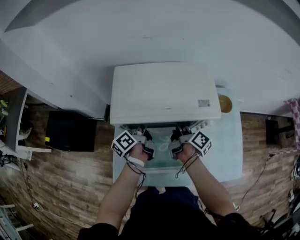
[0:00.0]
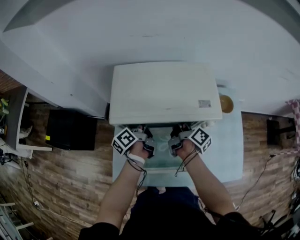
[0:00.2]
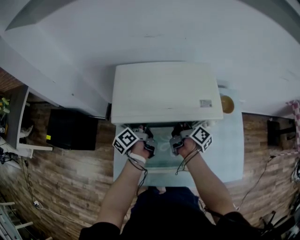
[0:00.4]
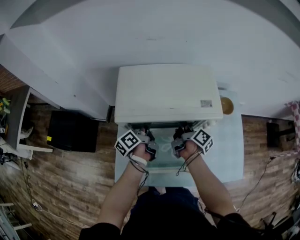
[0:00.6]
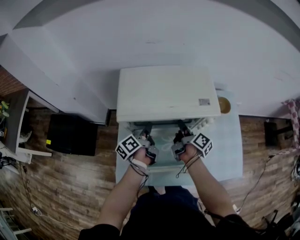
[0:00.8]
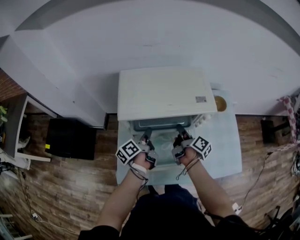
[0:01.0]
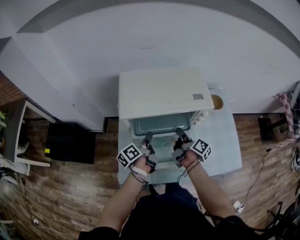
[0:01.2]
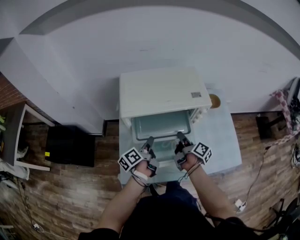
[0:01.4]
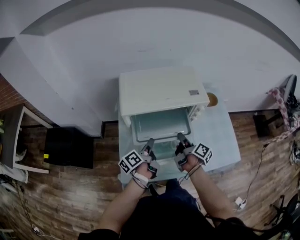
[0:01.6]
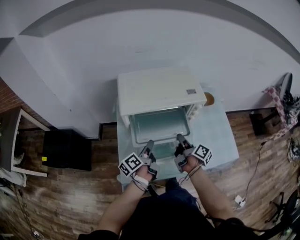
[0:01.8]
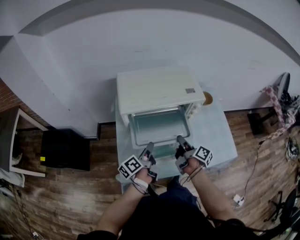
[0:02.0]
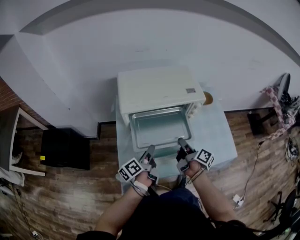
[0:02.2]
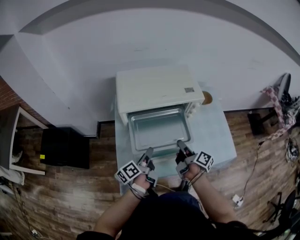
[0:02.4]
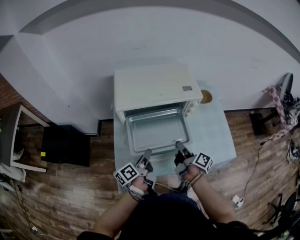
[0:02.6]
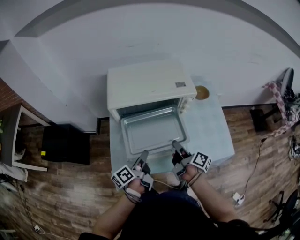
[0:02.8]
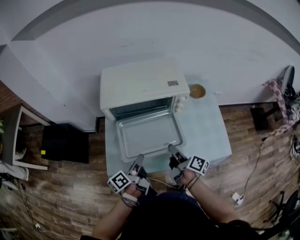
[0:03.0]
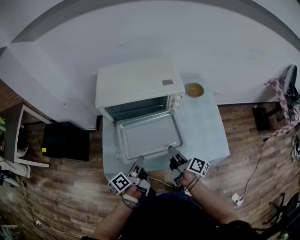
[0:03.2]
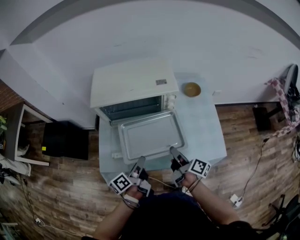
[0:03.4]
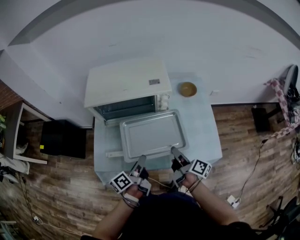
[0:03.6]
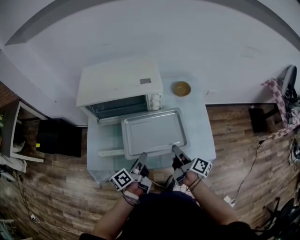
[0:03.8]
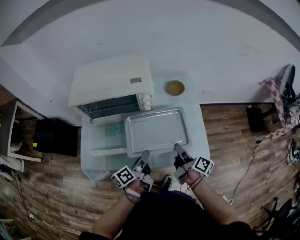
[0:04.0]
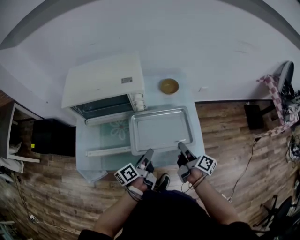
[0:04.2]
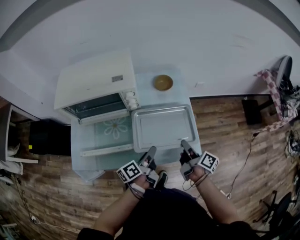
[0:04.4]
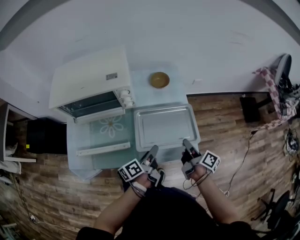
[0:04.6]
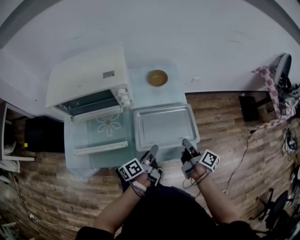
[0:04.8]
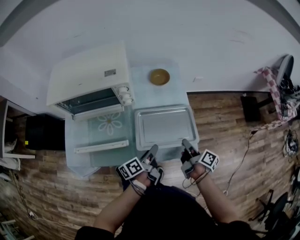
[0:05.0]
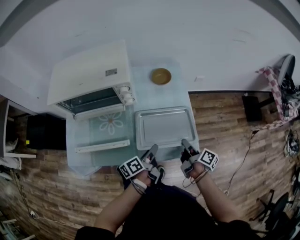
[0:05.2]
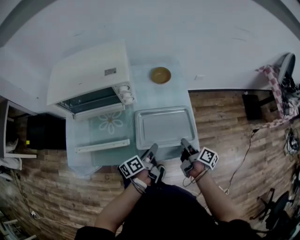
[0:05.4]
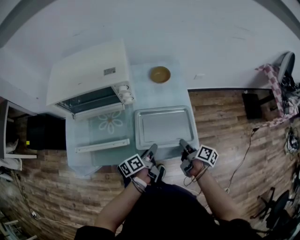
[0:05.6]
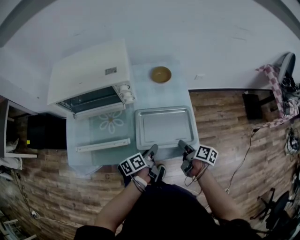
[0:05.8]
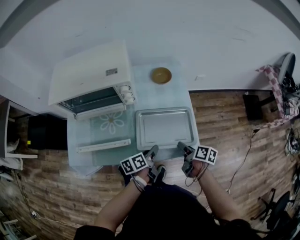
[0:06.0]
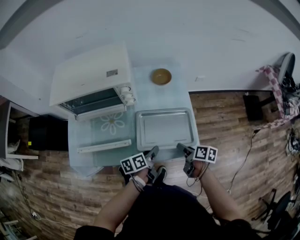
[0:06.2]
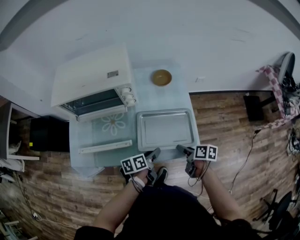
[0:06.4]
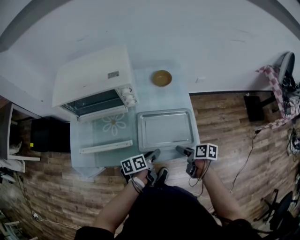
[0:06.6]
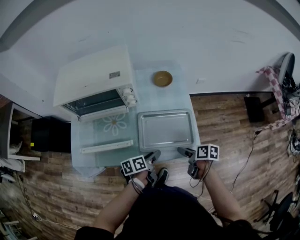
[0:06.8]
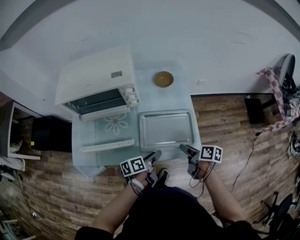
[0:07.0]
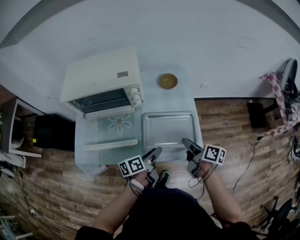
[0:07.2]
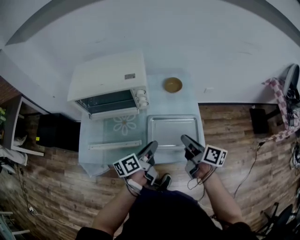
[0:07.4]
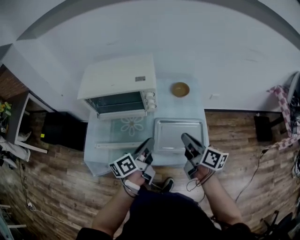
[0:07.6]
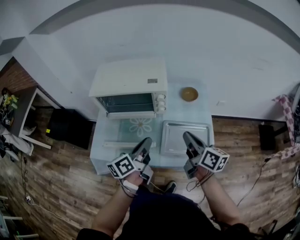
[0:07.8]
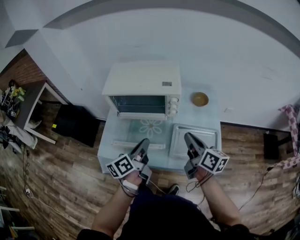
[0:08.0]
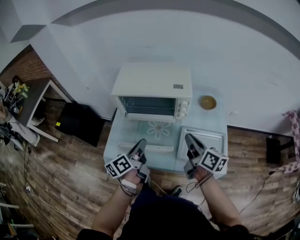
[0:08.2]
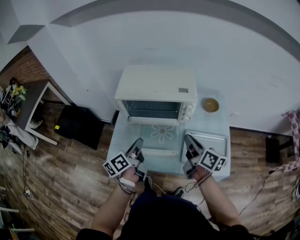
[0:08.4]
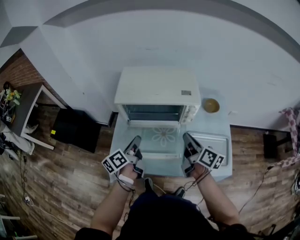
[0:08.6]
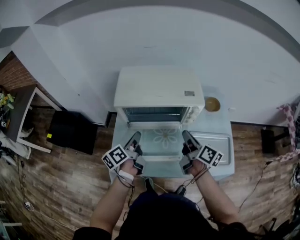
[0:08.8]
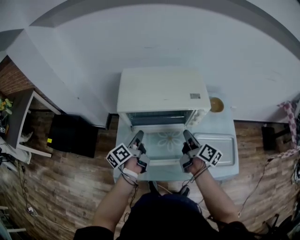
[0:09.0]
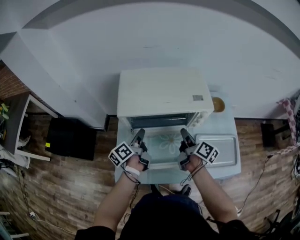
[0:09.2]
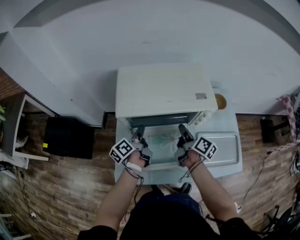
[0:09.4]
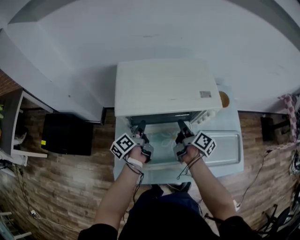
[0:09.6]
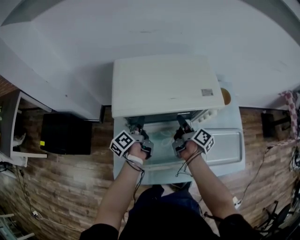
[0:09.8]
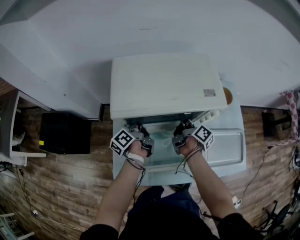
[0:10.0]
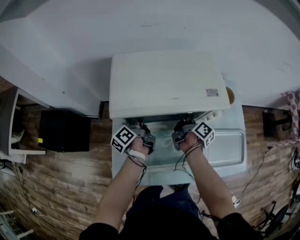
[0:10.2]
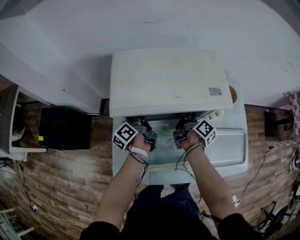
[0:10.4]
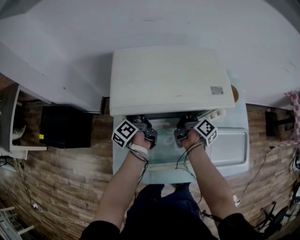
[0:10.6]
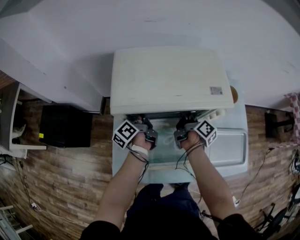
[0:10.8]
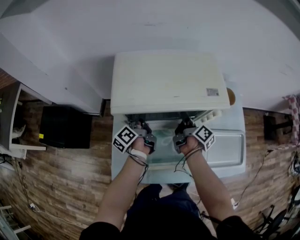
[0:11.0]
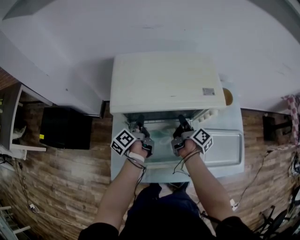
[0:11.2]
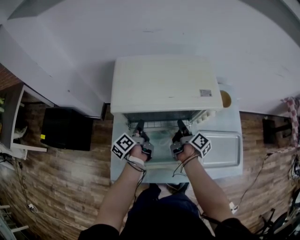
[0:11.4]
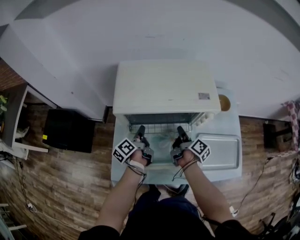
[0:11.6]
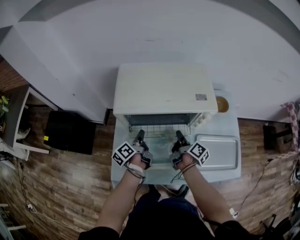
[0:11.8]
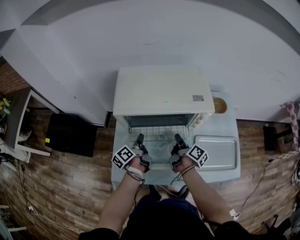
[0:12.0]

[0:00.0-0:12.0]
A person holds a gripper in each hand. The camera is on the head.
0:00.0 to 0:01.6: Both grippers move backward, roughly 15 cm. The left gripper closes.
0:01.6 to 0:03.0: Both grippers travel together backward and to the right, about 15 cm.
0:03.0 to 0:04.4: The grippers both shift to the right by approximately 35 cm.
0:04.4 to 0:06.0: The grippers both shift downward by approximately 5 cm. The right gripper changes its angle by some 20 degrees. Meanwhile the left gripper changes its angle by roughly 20 degrees.
0:06.0 to 0:07.6: The grippers both shift upward and to the left by approximately 25 cm. The left gripper swivels about 30 degrees. The right gripper angles its fingers upward, by about 30 degrees, and closes its fingers.
0:07.6 to 0:09.0: The two grippers go some 30 cm to the left and forward. The right gripper rotates some 20 degrees.
0:09.0 to 0:10.4: The two grippers go about 20 cm forward and downward.
0:10.4 to 0:12.0: Both grippers travel together backward, approximately 10 cm. The left gripper closes.

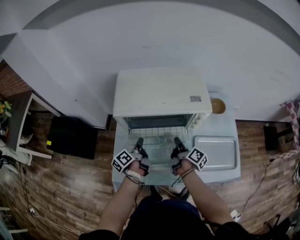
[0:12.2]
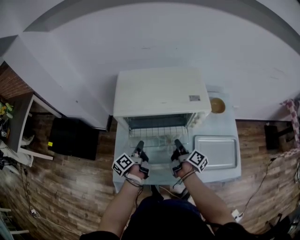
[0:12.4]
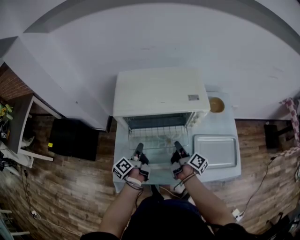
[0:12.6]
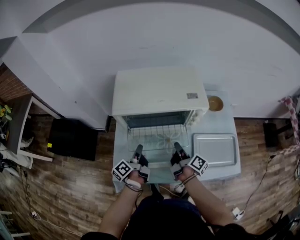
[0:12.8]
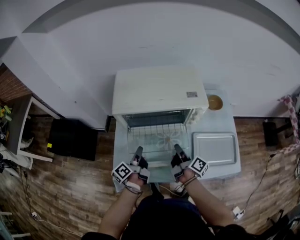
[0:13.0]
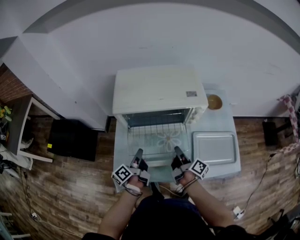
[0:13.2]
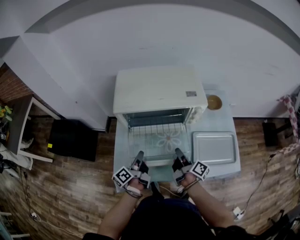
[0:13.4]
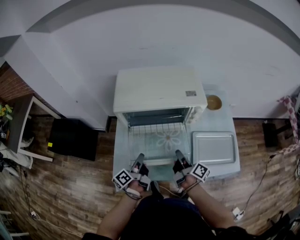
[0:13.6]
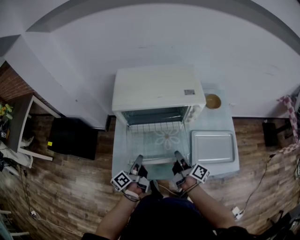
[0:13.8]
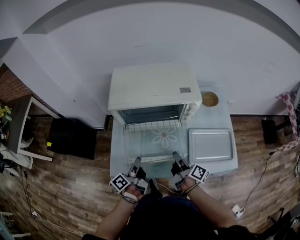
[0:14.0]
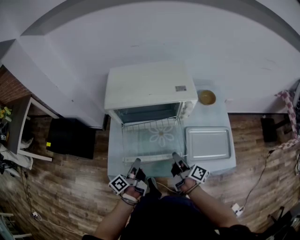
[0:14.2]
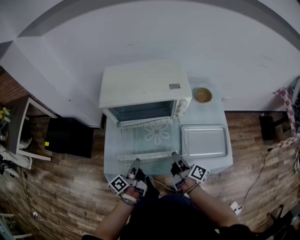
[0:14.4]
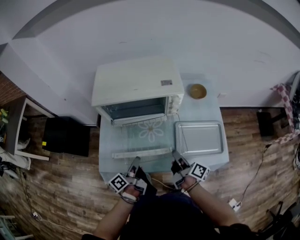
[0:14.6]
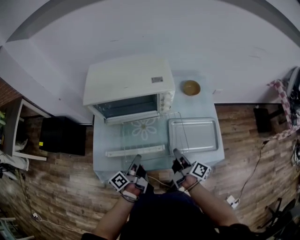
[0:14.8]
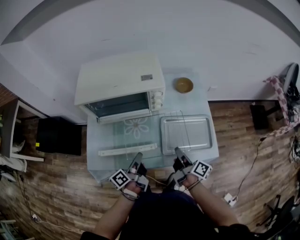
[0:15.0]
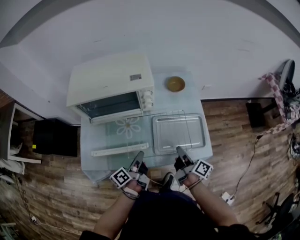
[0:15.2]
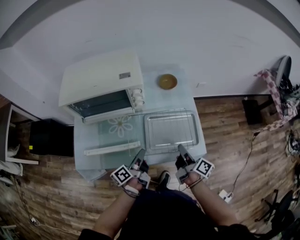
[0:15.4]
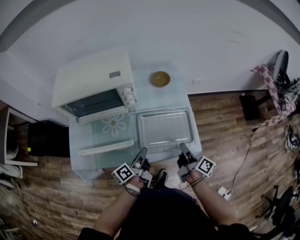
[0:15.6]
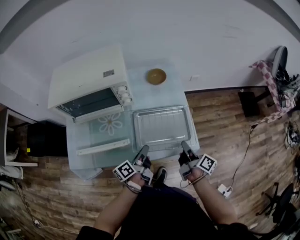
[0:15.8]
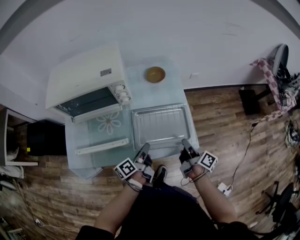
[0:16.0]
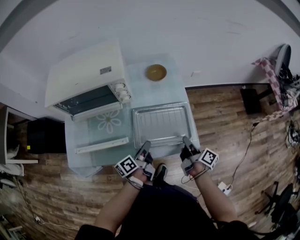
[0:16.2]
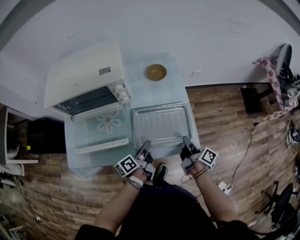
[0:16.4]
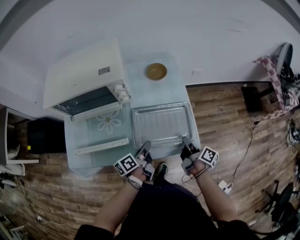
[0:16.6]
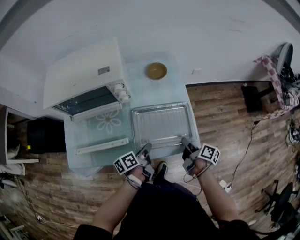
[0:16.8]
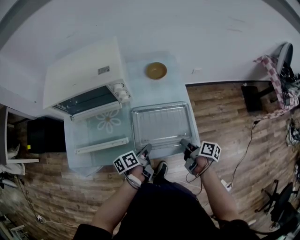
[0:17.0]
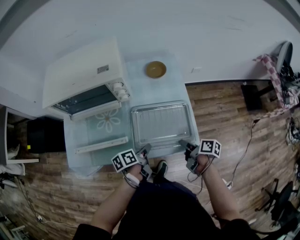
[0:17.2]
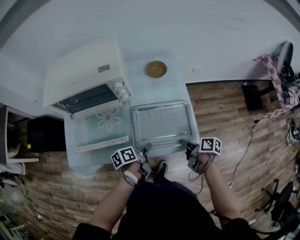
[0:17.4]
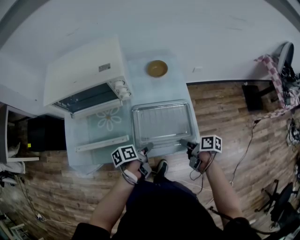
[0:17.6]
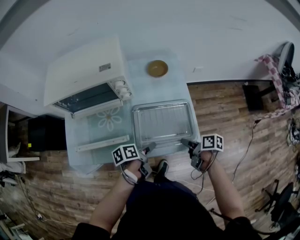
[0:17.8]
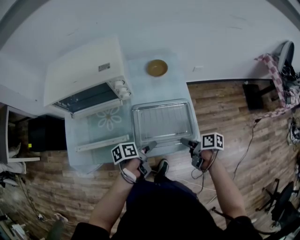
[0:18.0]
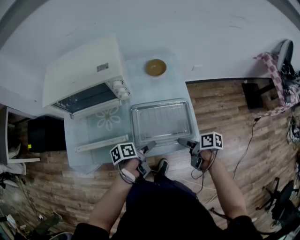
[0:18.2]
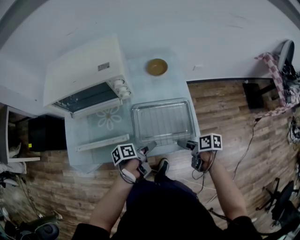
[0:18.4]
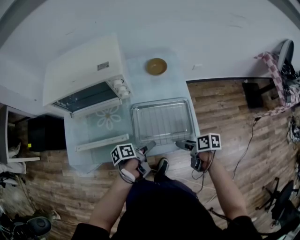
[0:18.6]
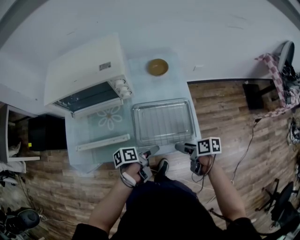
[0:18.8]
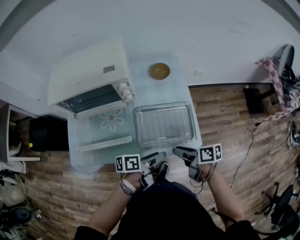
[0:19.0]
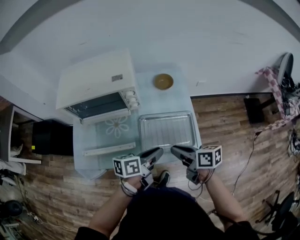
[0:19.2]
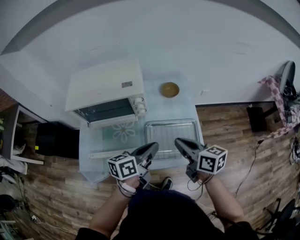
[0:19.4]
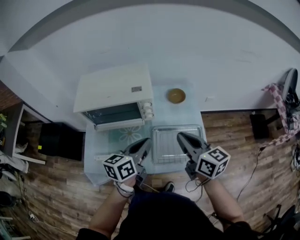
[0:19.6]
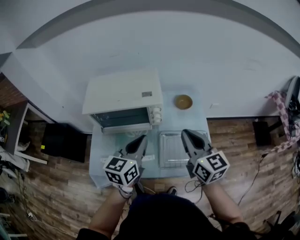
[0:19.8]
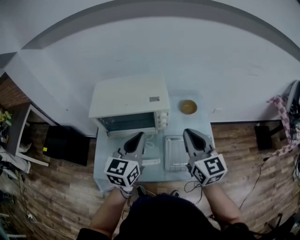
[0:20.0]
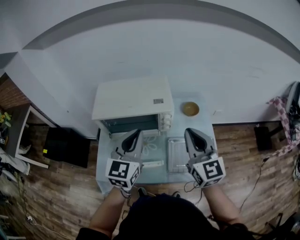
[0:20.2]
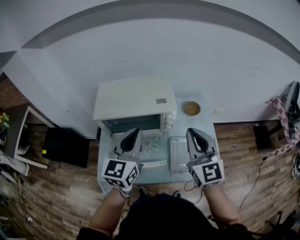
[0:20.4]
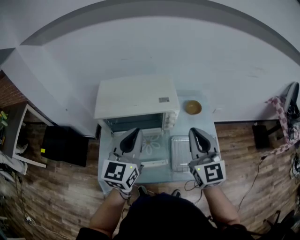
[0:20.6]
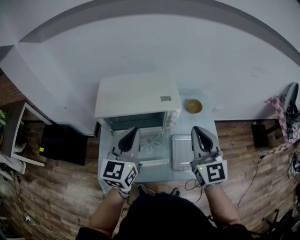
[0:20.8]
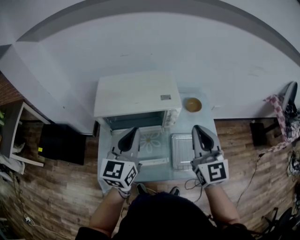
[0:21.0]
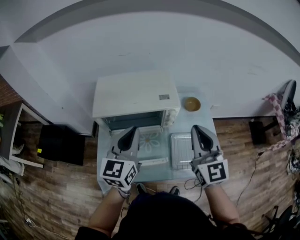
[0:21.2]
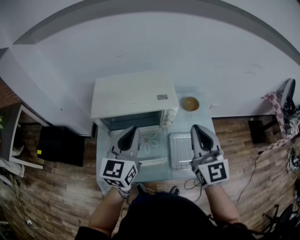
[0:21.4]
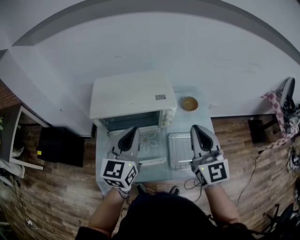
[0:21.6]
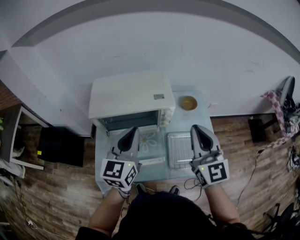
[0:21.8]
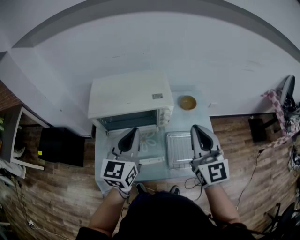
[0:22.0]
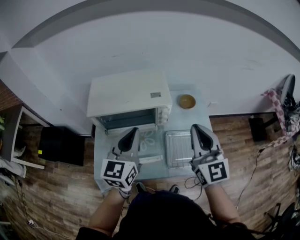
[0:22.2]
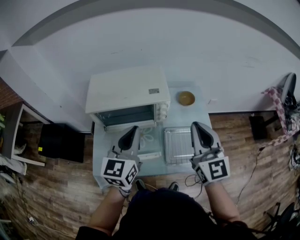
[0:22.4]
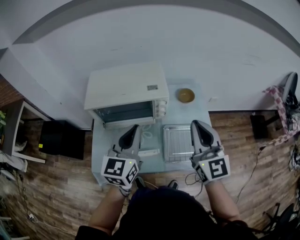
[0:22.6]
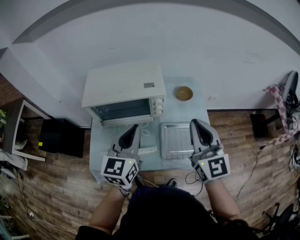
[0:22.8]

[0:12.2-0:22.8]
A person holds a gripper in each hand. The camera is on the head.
0:12.2 to 0:13.8: The grippers both shift backward by some 10 cm.
0:13.8 to 0:15.2: Both grippers travel together to the right, approximately 25 cm.
0:15.2 to 0:16.8: The left gripper heads to the right, covering approximately 15 cm, while the right gripper heads to the right and downward, covering approximately 15 cm.
0:16.8 to 0:18.2: The left gripper opens up, while the right gripper changes its angle by about 30 degrees, and opens.
0:18.2 to 0:19.8: Both grippers move upward and to the left, some 35 cm. The left gripper rolls clockwise, seen from behind, by roughly 60 degrees, and closes its fingers, while the right gripper twists approximately 60 degrees counterclockwise, seen from behind, and closes up.
0:19.8 to 0:21.2: The grippers both shift to the left and upward by some 10 cm. The right gripper rotates some 30 degrees.
0:21.2 to 0:22.8: Both grippers travel together to the right, approximately 10 cm.

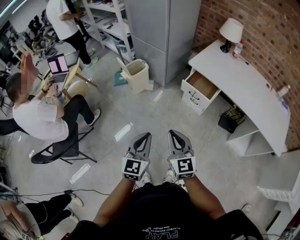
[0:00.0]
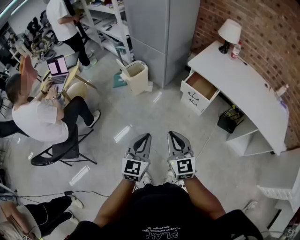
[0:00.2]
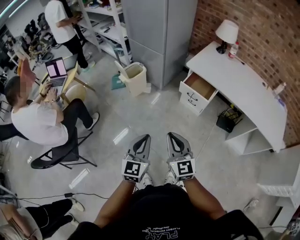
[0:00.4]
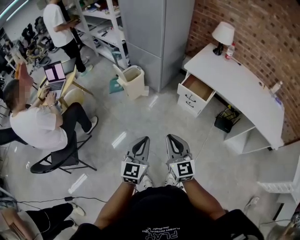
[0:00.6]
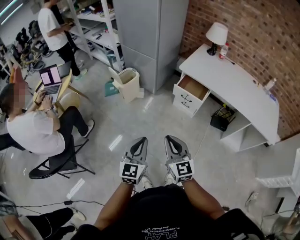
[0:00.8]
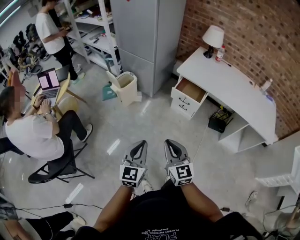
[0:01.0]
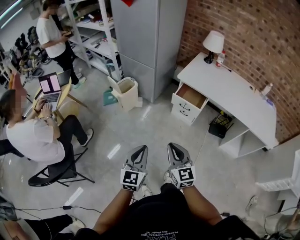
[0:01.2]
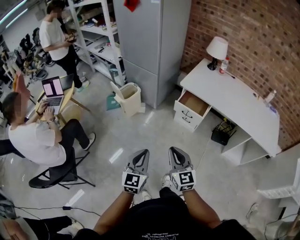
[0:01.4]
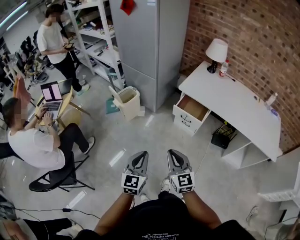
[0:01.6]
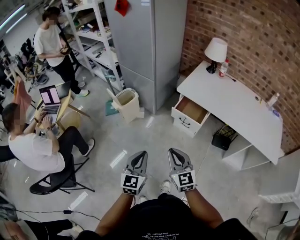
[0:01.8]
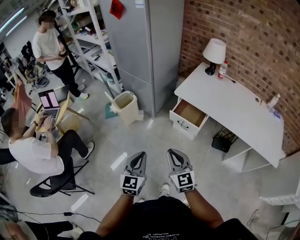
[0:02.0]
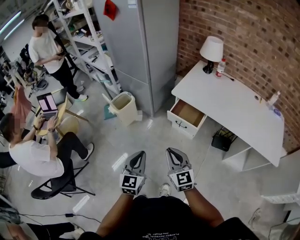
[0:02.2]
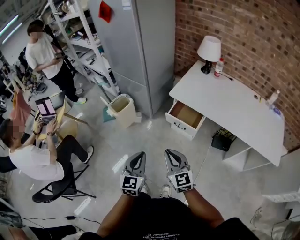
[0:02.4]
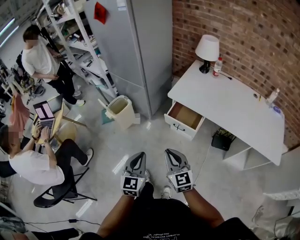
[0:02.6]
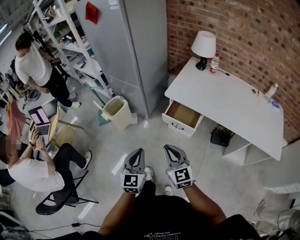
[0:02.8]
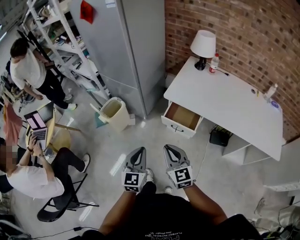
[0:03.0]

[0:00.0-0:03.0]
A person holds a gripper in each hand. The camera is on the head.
0:00.0 to 0:01.6: The grippers move only a little.
0:01.6 to 0:03.0: The two grippers go some 20 cm forward and to the right.
